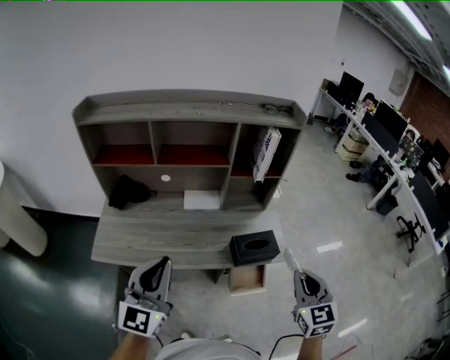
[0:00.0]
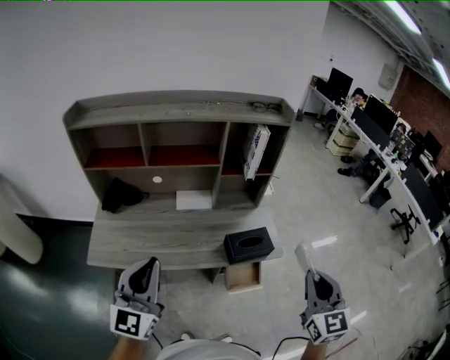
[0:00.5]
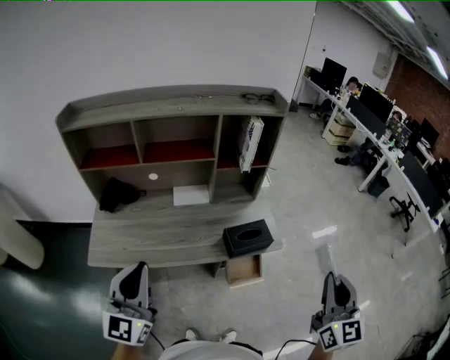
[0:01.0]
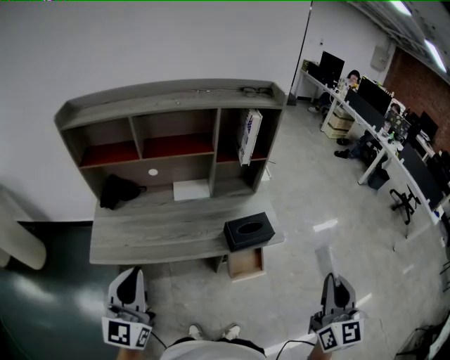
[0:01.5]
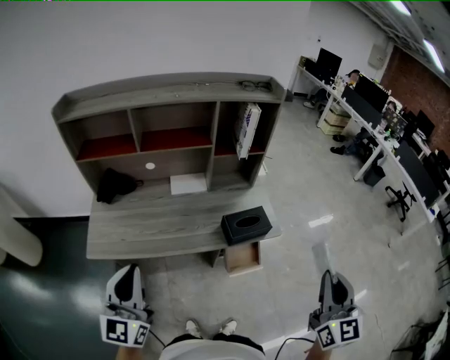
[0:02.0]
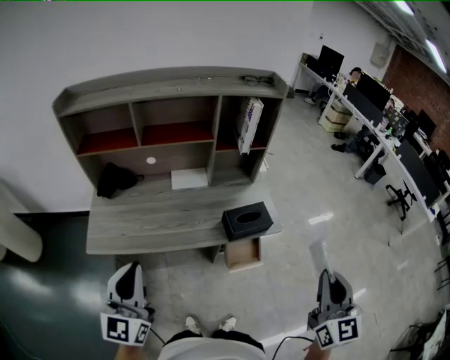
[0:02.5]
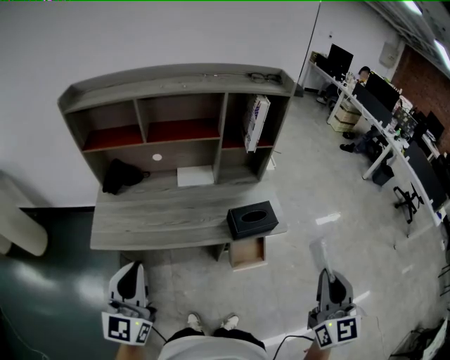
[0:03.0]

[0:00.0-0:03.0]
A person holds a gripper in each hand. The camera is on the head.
0:00.0 to 0:01.5: The left gripper moves backward, approximately 5 cm. Meanwhile the right gripper shifts approximately 15 cm backward, upward and to the right, and turns by some 20 degrees.
0:01.5 to 0:03.0: There are only small adjustments of the grippers.

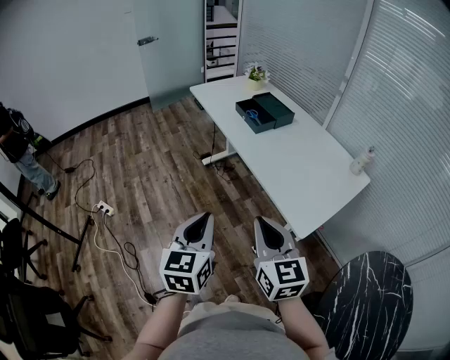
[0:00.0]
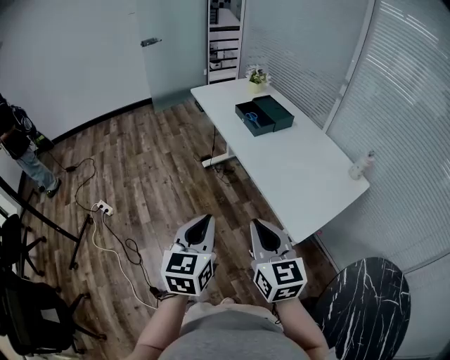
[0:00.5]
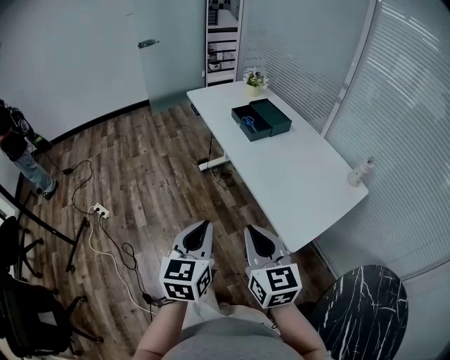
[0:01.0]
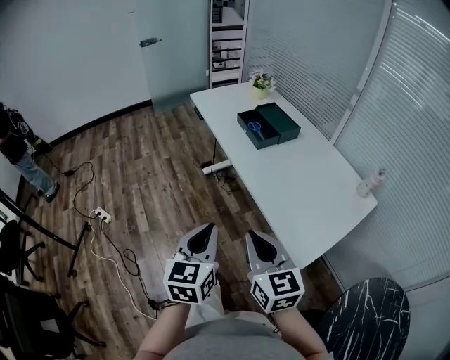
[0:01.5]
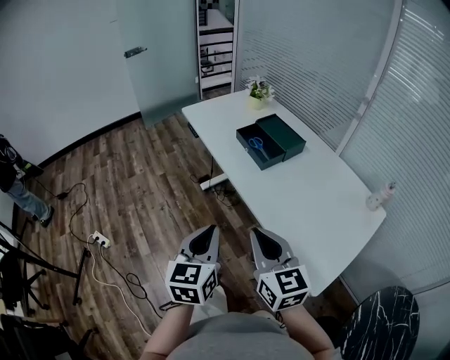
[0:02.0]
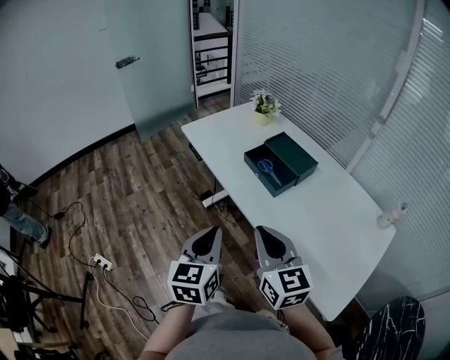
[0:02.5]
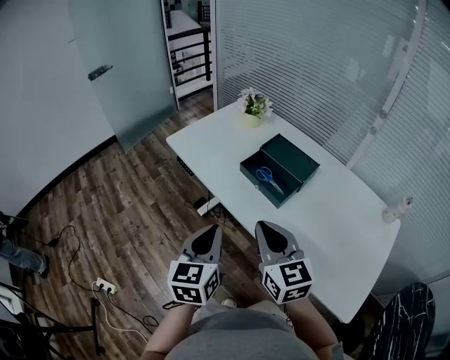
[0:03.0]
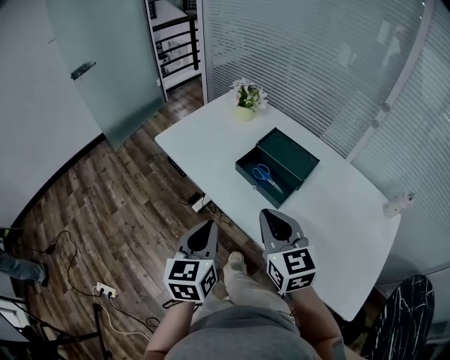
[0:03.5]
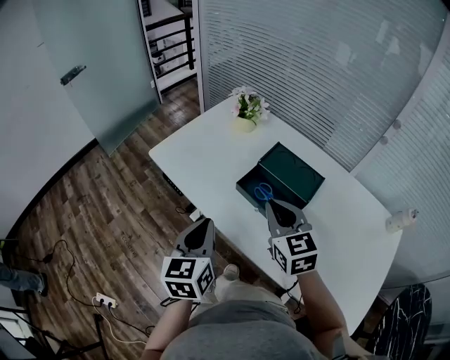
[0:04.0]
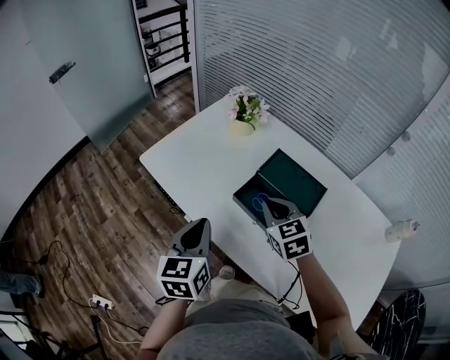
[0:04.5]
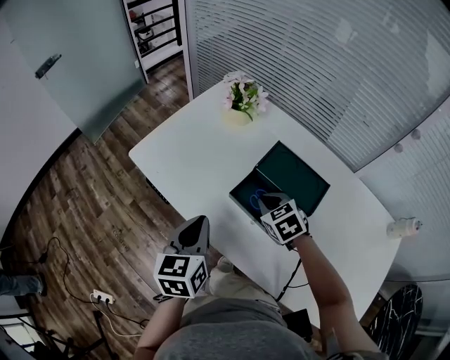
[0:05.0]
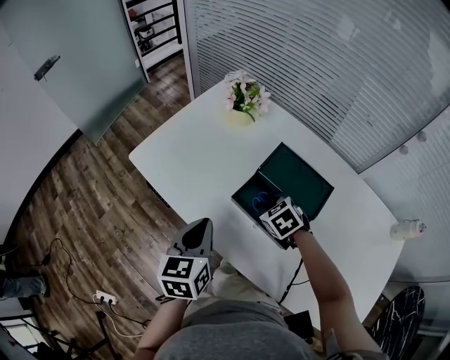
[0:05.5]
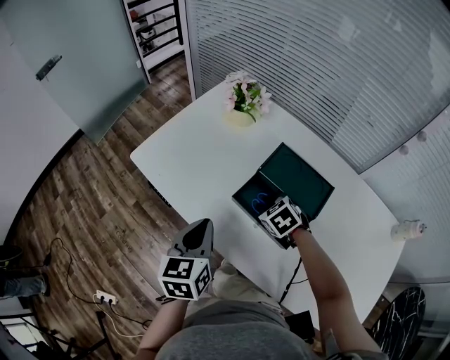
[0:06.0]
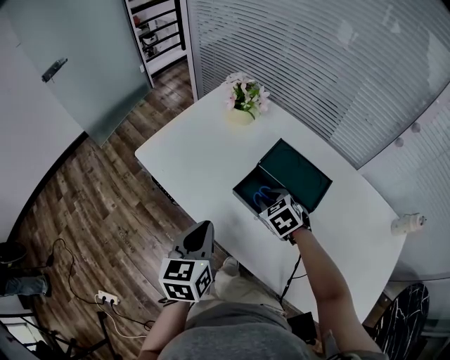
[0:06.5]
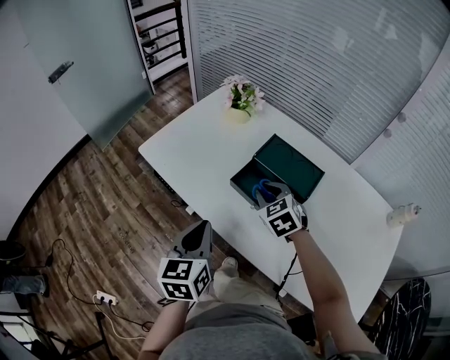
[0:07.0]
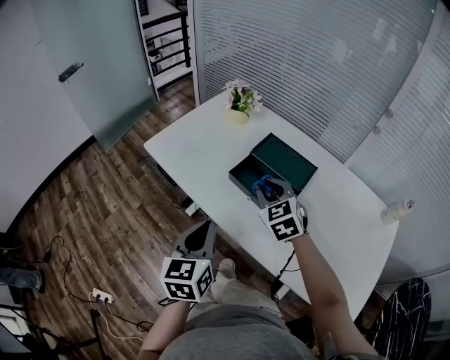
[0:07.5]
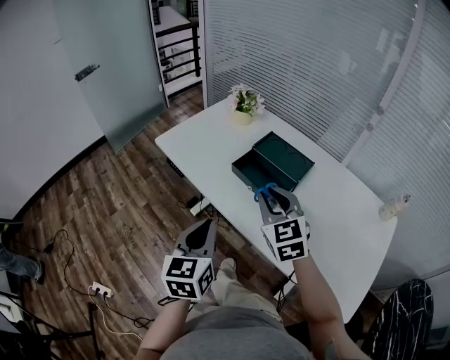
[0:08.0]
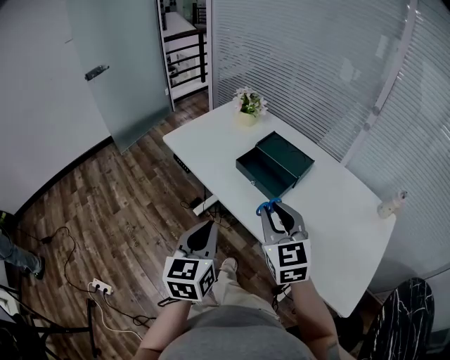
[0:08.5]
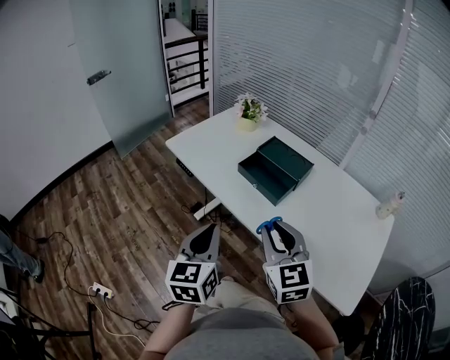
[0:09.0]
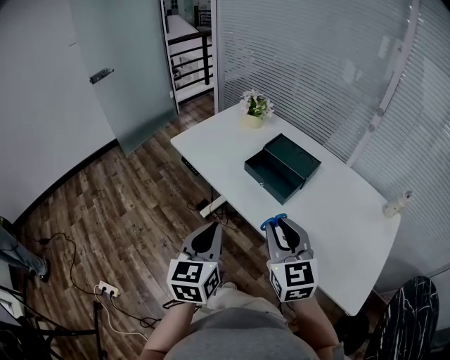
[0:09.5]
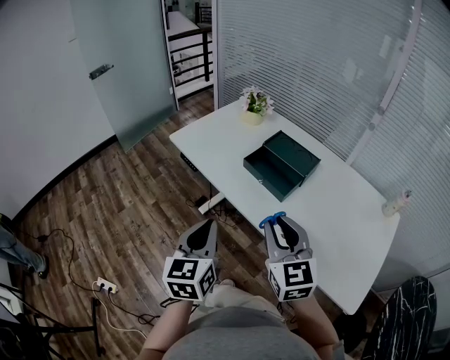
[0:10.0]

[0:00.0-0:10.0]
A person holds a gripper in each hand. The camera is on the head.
0:00.0 to 0:02.0: The two grippers go roughly 25 cm forward.
0:02.0 to 0:04.0: The pair of grippers is taken forward, roughly 40 cm. The right gripper rotates roughly 20 degrees.
0:04.0 to 0:06.0: The left gripper goes about 15 cm forward and downward, while the right gripper goes approximately 25 cm downward and forward, and tips its fingers downward by roughly 40 degrees.
0:06.0 to 0:08.0: The left gripper goes about 25 cm backward; the right gripper is displaced upward and backward by about 30 cm, and angles its fingers upward, by some 40 degrees.
0:08.0 to 0:10.0: The right gripper heads backward, covering approximately 15 cm; the left gripper travels backward by approximately 5 cm.

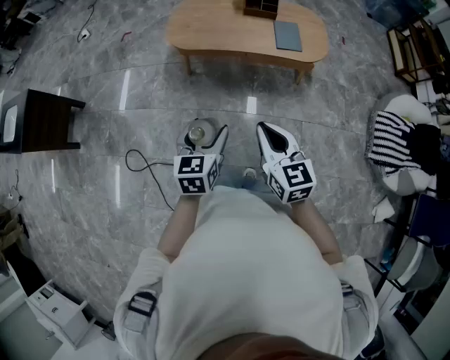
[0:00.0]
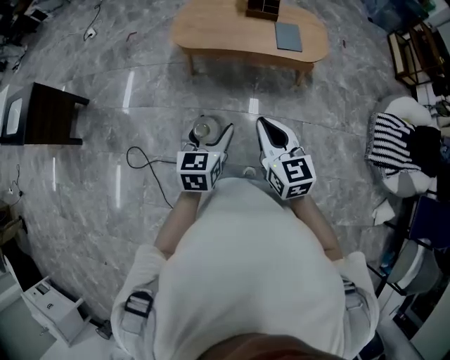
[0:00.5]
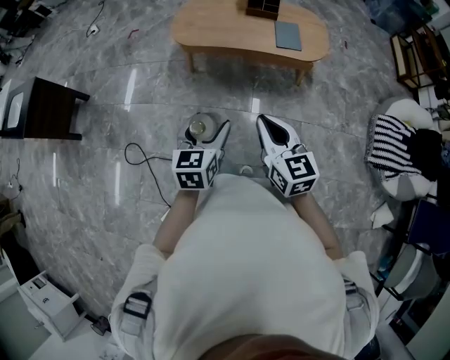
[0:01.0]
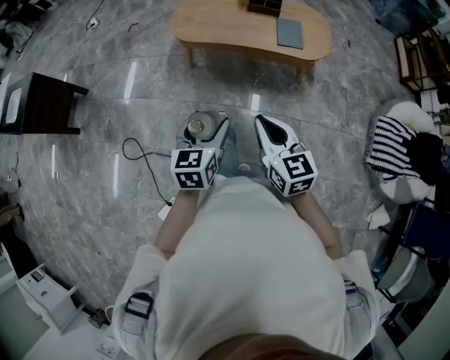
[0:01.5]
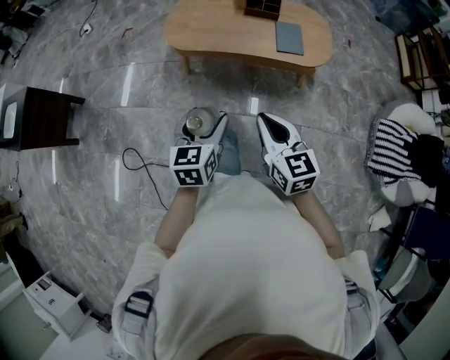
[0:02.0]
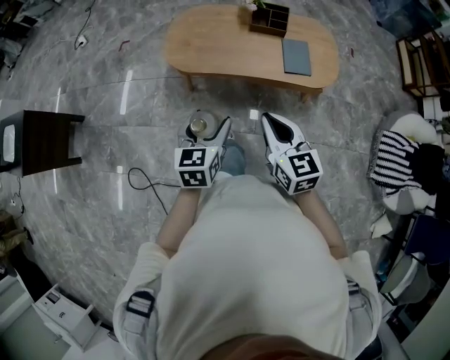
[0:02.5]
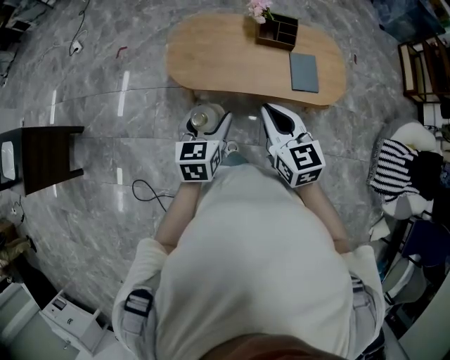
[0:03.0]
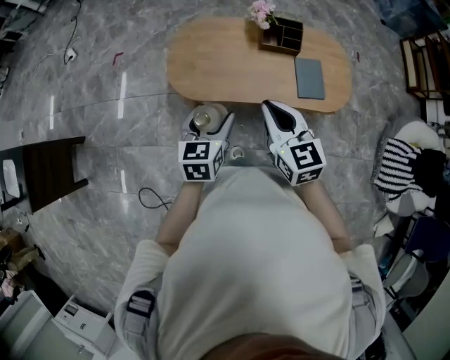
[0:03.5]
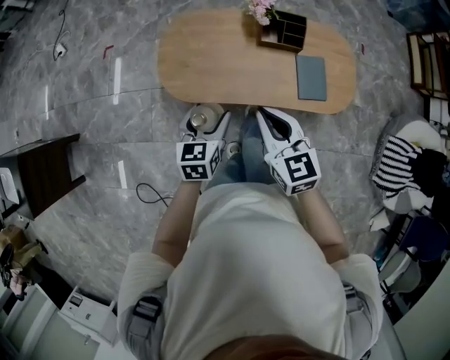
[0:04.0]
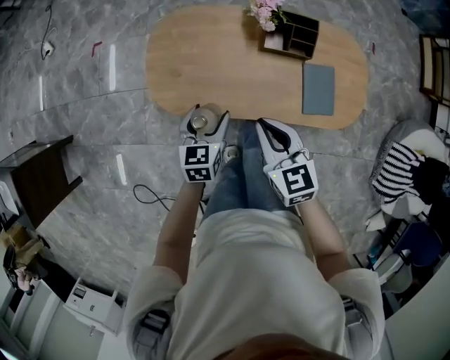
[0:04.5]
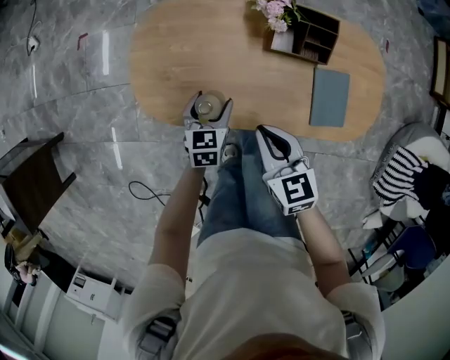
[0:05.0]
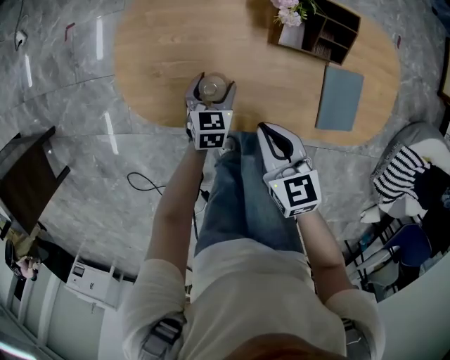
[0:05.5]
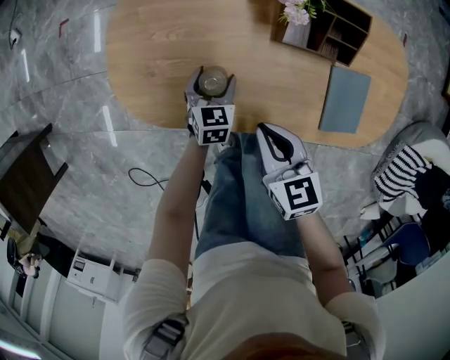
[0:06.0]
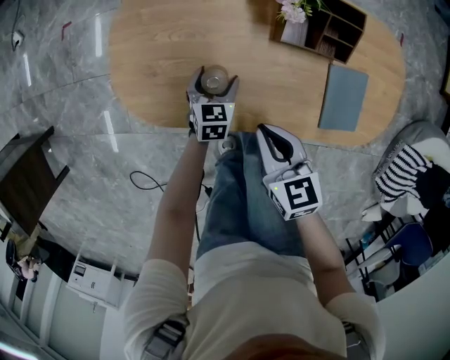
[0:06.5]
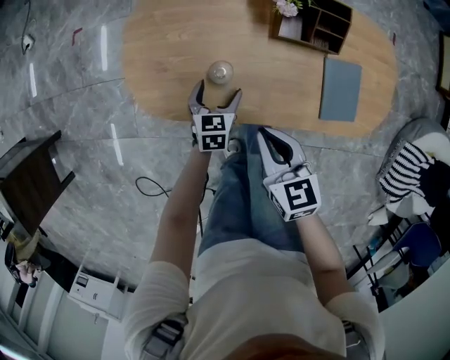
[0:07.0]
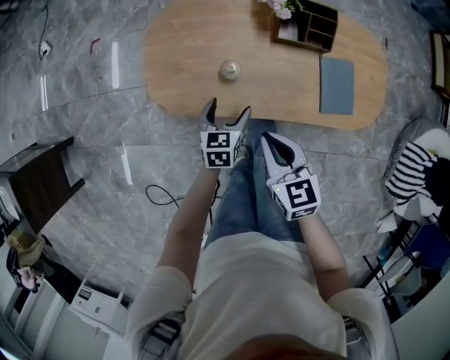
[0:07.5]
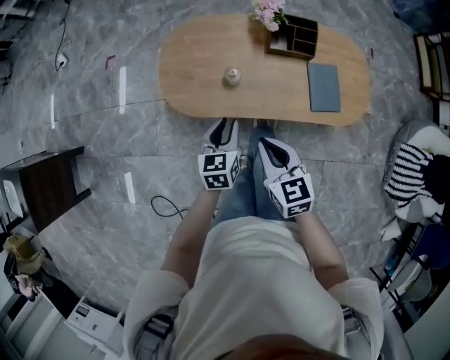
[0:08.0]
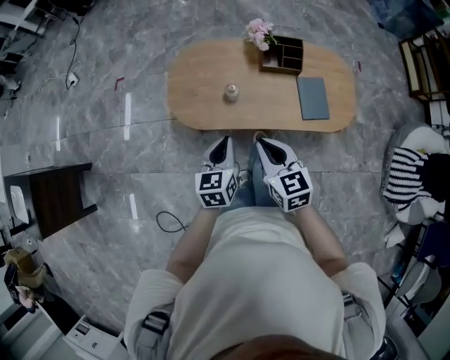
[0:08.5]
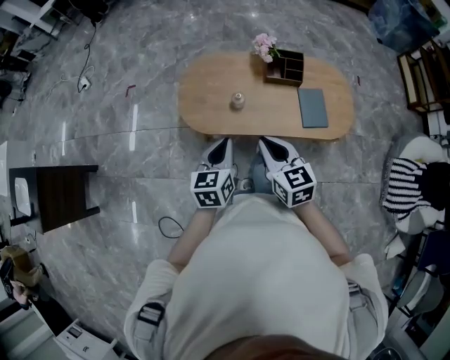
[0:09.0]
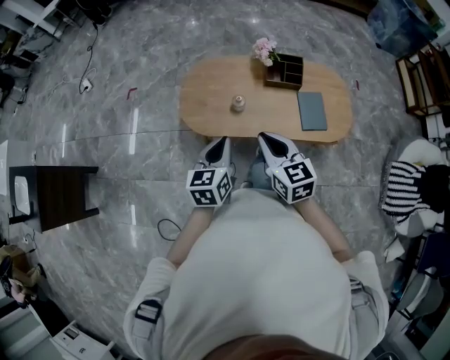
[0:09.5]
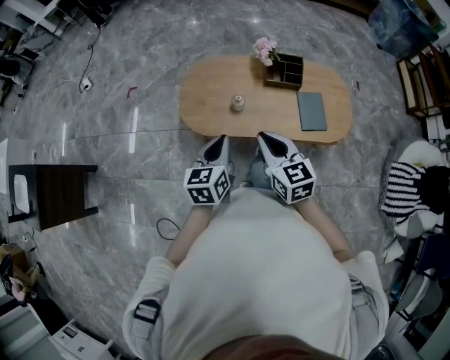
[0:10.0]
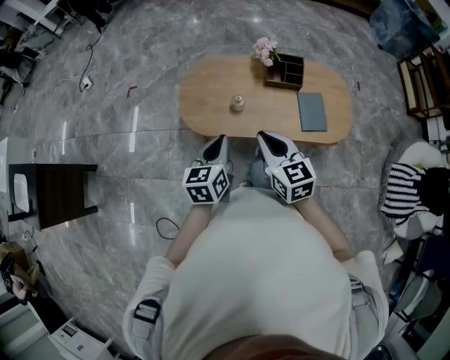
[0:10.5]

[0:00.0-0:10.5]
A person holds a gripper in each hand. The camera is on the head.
0:00.0 to 0:02.0: The grippers both shift forward by roughly 5 cm.
0:02.0 to 0:04.0: Both grippers are carried forward, about 40 cm.
0:04.0 to 0:06.5: The two grippers go about 35 cm downward and forward. The right gripper turns by approximately 20 degrees.
0:06.5 to 0:08.5: The right gripper moves upward and backward, some 25 cm, while the left gripper heads upward and backward, covering roughly 40 cm, rotates about 20 degrees, and closes up.
0:08.5 to 0:10.5: Both grippers travel together upward, approximately 5 cm.

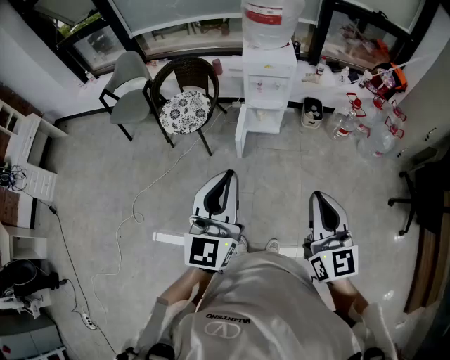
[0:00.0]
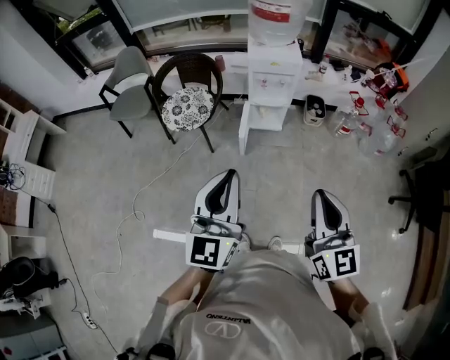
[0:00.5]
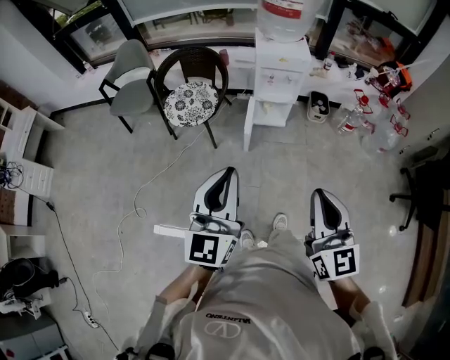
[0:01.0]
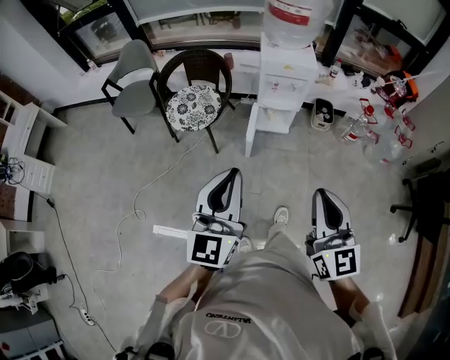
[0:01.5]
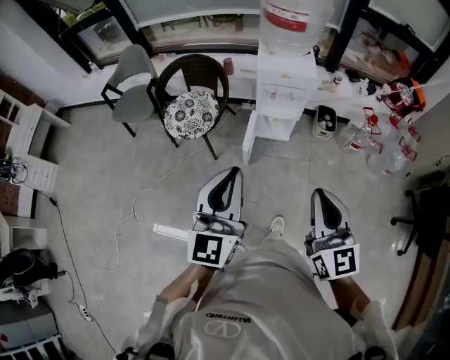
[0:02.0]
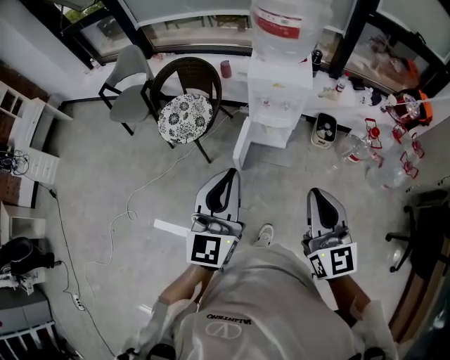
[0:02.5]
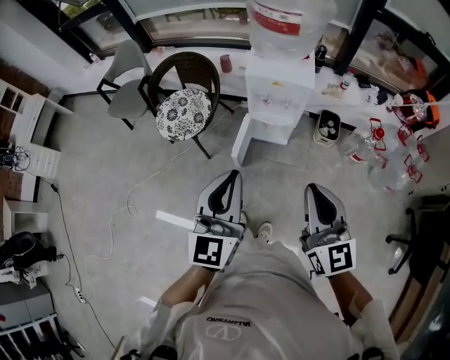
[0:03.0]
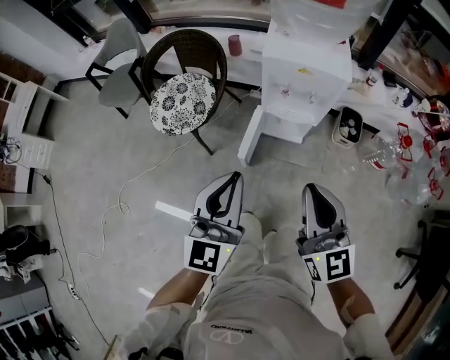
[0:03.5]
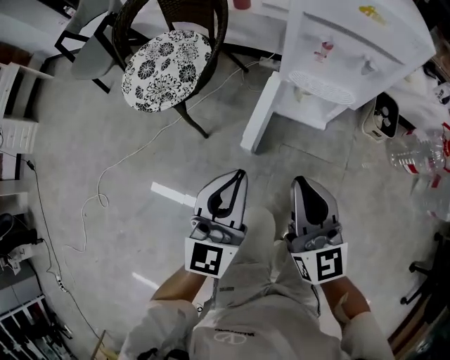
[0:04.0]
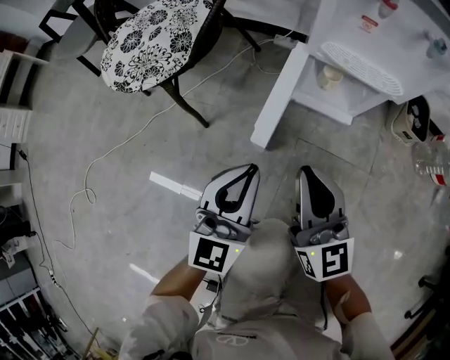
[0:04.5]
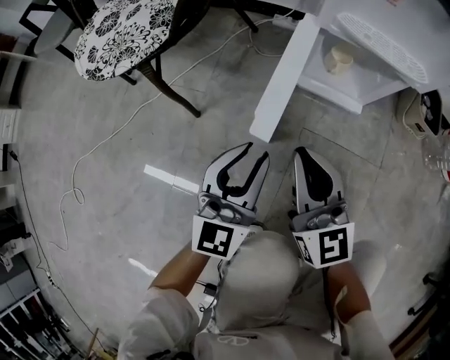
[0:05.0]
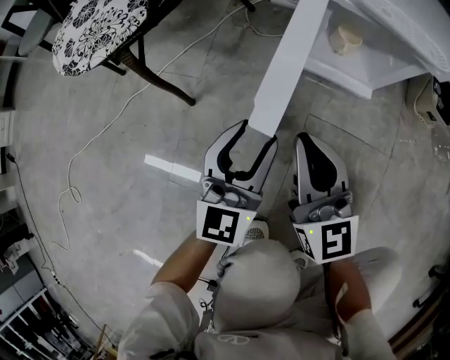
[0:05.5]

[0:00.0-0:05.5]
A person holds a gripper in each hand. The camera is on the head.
0:00.0 to 0:02.0: Both grippers travel together forward, roughly 15 cm.
0:02.0 to 0:03.5: The left gripper heads downward, forward and to the right, covering some 30 cm, while the right gripper is displaced forward and downward by approximately 30 cm.
0:03.5 to 0:05.5: Both grippers move downward, roughly 60 cm. The left gripper opens up.
